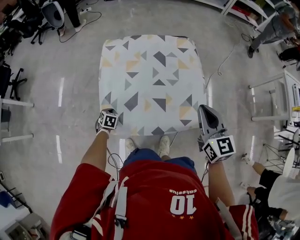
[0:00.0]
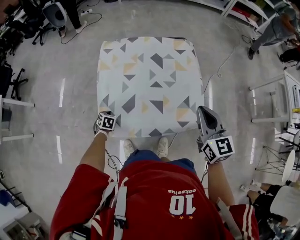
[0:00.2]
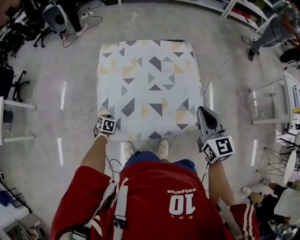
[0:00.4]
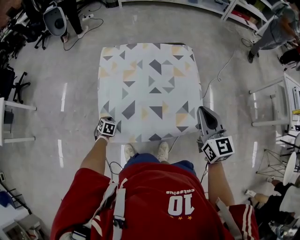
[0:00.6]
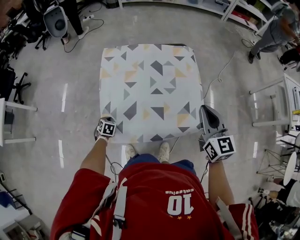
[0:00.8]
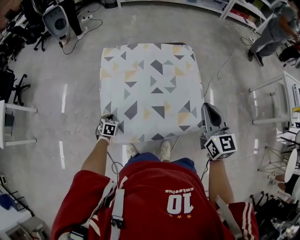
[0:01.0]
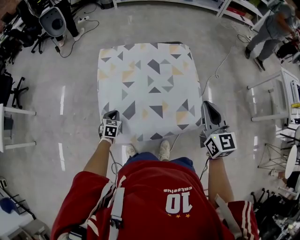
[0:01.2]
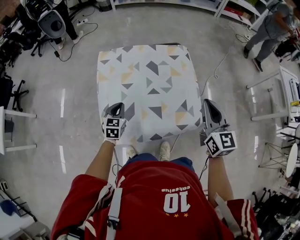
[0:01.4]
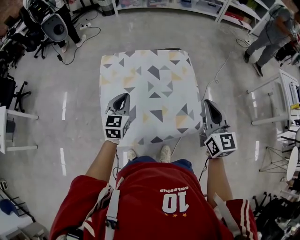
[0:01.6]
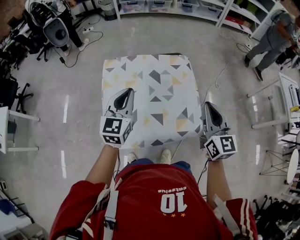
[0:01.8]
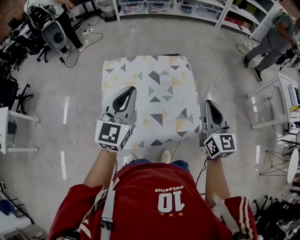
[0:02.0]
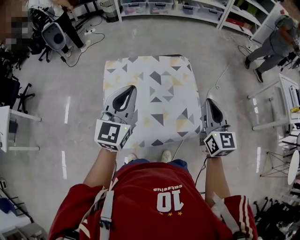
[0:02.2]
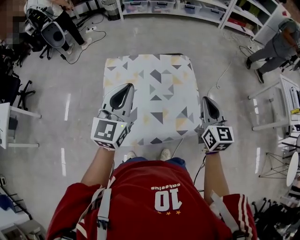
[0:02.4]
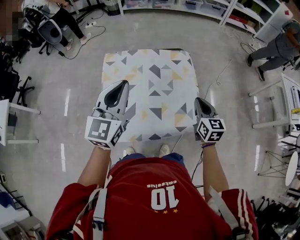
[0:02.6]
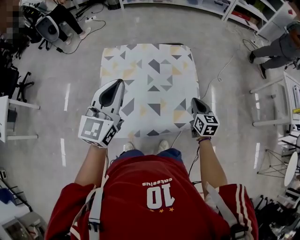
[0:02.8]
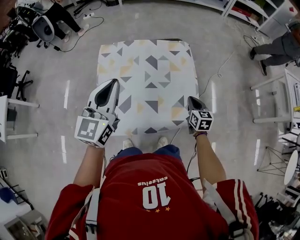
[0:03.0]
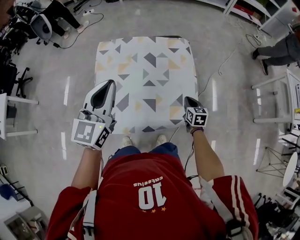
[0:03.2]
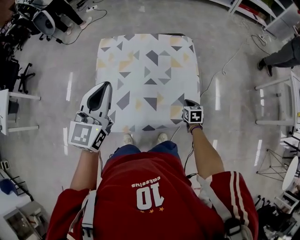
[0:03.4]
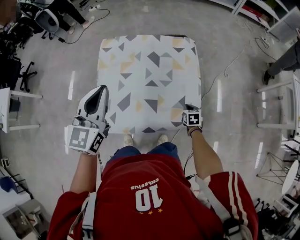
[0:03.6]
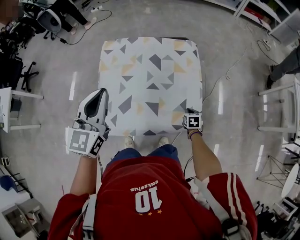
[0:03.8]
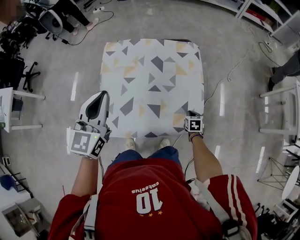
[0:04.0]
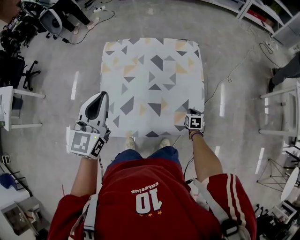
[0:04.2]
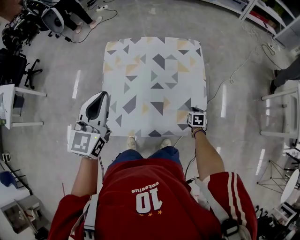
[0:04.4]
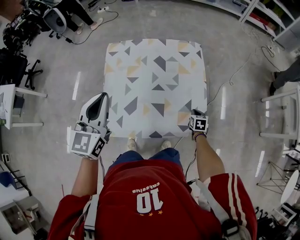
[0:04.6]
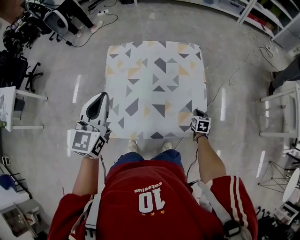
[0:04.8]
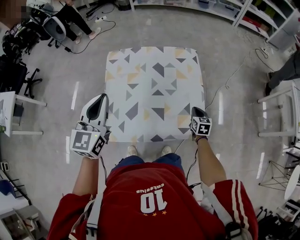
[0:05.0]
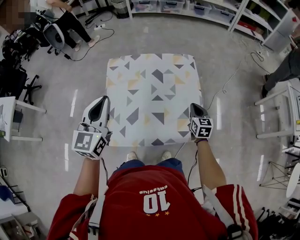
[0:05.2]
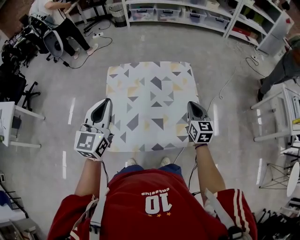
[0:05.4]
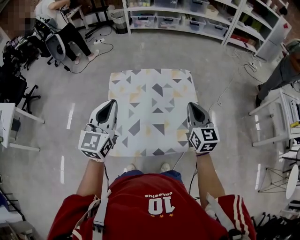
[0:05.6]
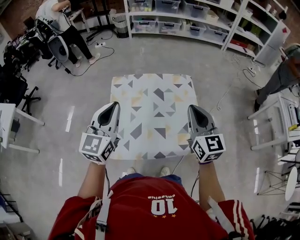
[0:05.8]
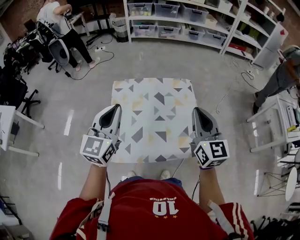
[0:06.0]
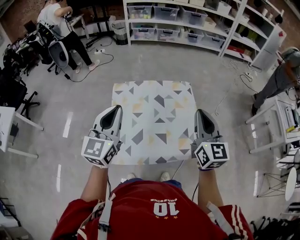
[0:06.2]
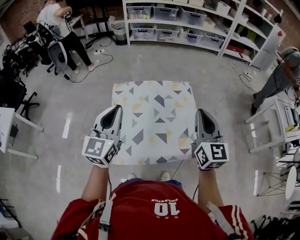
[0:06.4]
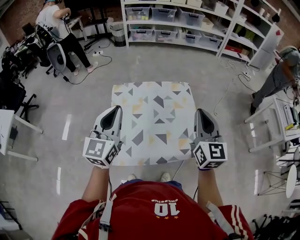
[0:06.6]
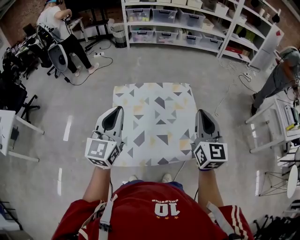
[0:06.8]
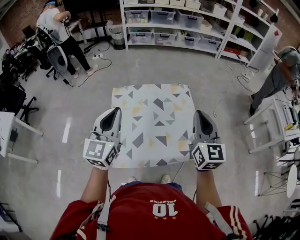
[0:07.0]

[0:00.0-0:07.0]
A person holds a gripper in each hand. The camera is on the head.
0.0 to 1.4 s: The left gripper is displaced upward and to the right by approximately 20 cm, and tilts its fingers approximately 30 degrees upward. Meanwhile the right gripper is displaced to the right by about 5 cm.
1.4 to 2.8 s: The left gripper is displaced upward by some 30 cm, and tilts its fingers some 30 degrees upward. Meanwhile the right gripper travels downward by some 15 cm.
2.8 to 4.2 s: The left gripper is displaced downward by roughly 5 cm. Meanwhile the right gripper travels downward by roughly 25 cm, and tips its fingers downward by about 30 degrees.
4.2 to 5.6 s: The left gripper goes about 5 cm upward; the right gripper moves upward, about 40 cm, and tips its fingers upward by some 50 degrees.
5.6 to 7.0 s: The left gripper travels upward by approximately 5 cm. Meanwhile the right gripper shifts approximately 15 cm upward and backward.

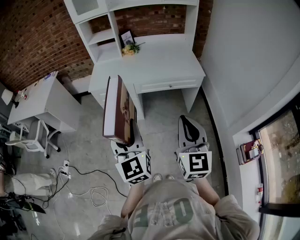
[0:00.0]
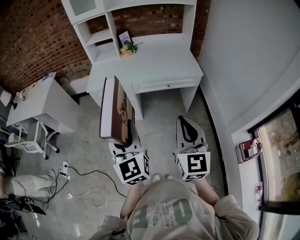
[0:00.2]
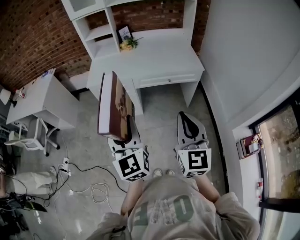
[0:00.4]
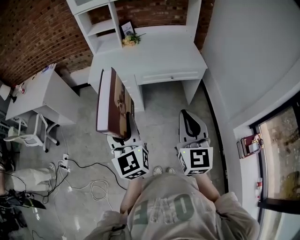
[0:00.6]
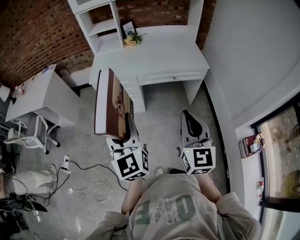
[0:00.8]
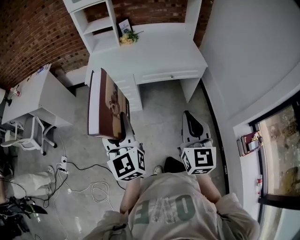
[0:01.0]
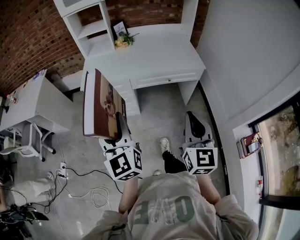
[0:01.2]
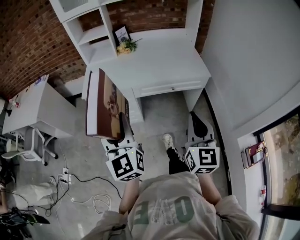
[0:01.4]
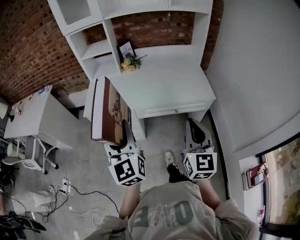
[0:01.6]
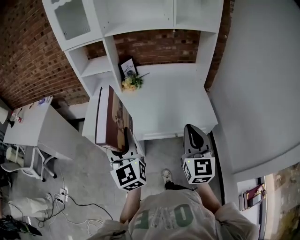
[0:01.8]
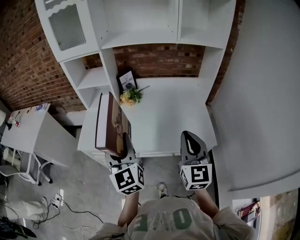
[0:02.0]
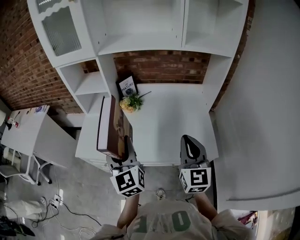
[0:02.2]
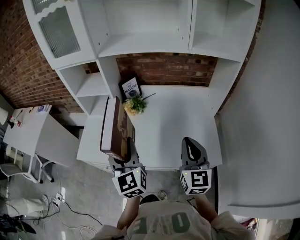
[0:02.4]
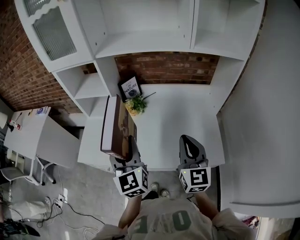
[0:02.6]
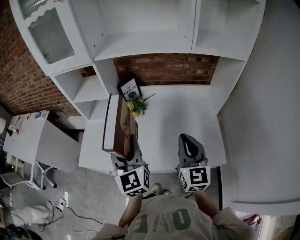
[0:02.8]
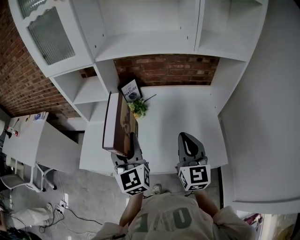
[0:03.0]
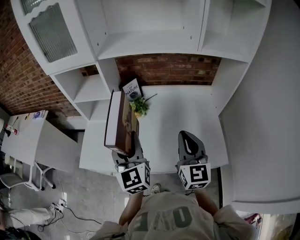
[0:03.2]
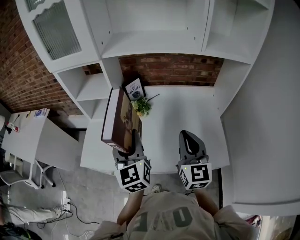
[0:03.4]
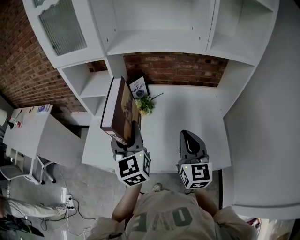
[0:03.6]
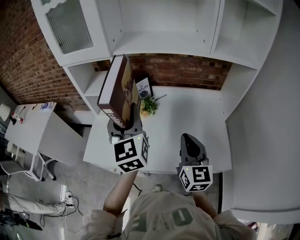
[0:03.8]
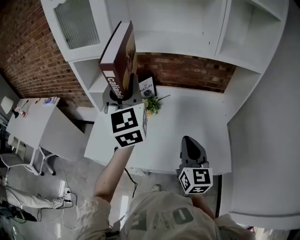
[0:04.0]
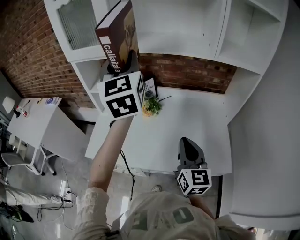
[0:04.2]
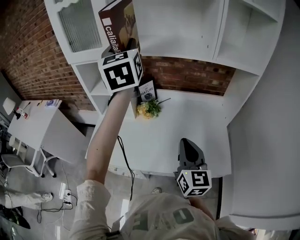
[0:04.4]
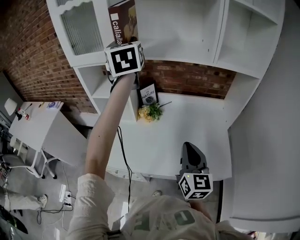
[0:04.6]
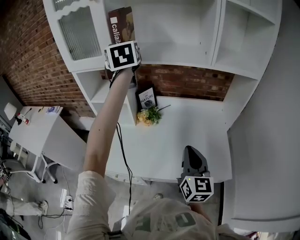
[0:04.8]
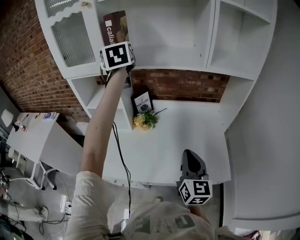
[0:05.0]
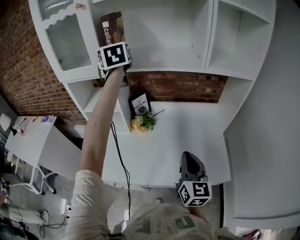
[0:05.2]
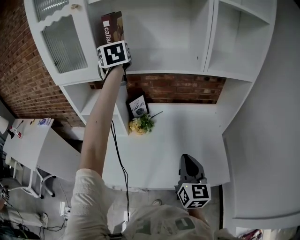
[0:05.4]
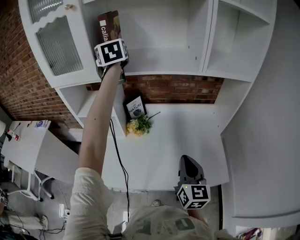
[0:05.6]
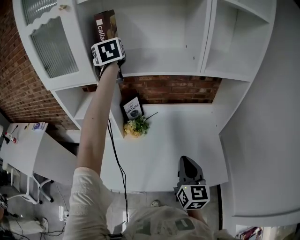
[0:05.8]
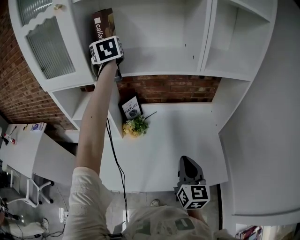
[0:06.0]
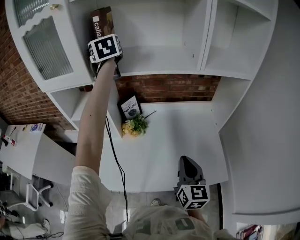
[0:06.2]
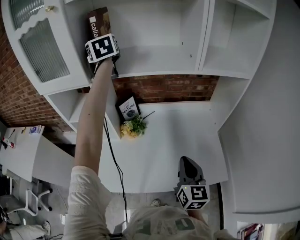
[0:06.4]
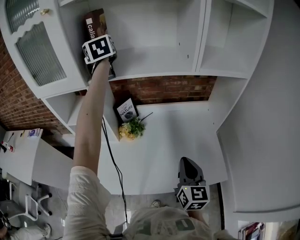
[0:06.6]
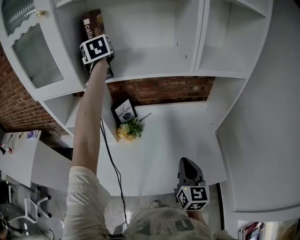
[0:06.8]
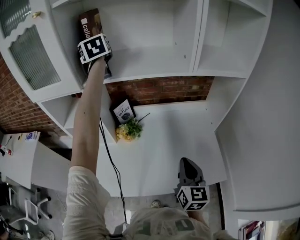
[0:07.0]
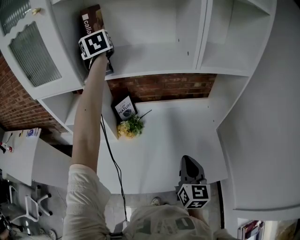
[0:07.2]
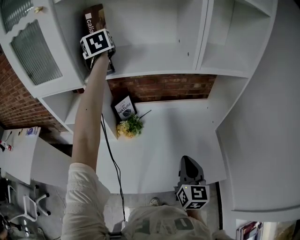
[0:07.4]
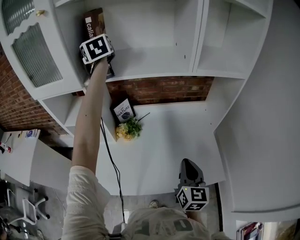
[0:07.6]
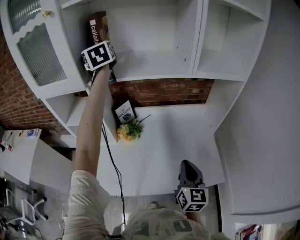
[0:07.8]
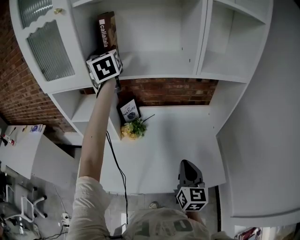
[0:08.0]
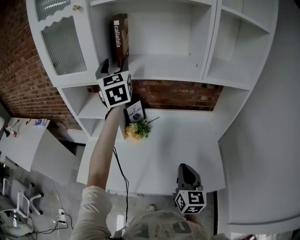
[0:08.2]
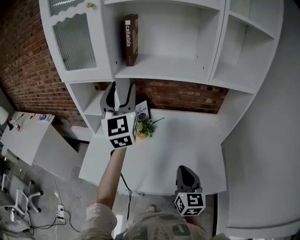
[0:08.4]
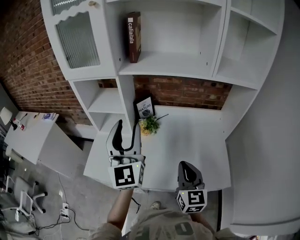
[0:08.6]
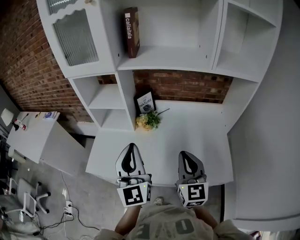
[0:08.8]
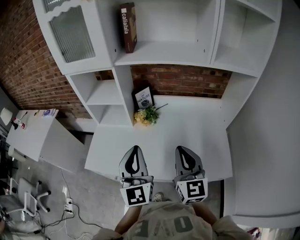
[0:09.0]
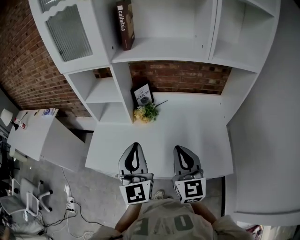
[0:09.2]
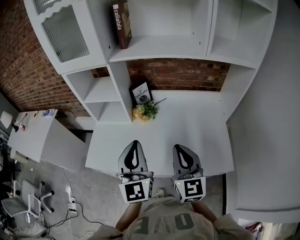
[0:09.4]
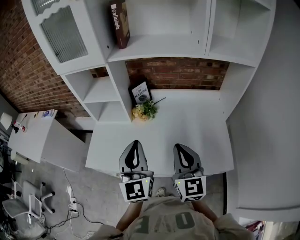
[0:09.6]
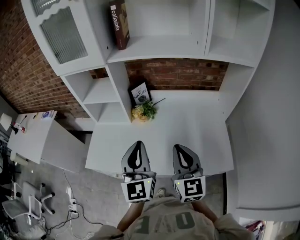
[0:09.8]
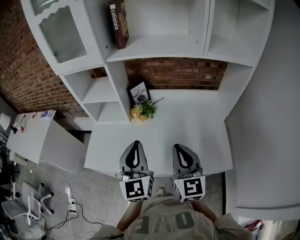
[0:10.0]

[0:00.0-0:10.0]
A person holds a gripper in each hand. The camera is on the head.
0.0 to 1.4 s: The right gripper goes about 15 cm forward and downward; the left gripper shifts roughly 15 cm forward.
1.4 to 2.8 s: The pair of grippers is taken forward, roughly 50 cm.
2.8 to 4.2 s: The right gripper is displaced to the left by roughly 5 cm. The left gripper goes about 25 cm upward and forward.
4.2 to 5.8 s: The right gripper changes place by roughly 5 cm. The left gripper moves forward, roughly 25 cm.
5.8 to 7.2 s: The left gripper travels forward by approximately 5 cm.
7.2 to 8.6 s: The left gripper shifts roughly 40 cm backward, and swivels roughly 20 degrees. Meanwhile the right gripper goes some 5 cm to the left.
8.6 to 10.0 s: The left gripper shifts approximately 10 cm downward and backward, and closes its fingers.

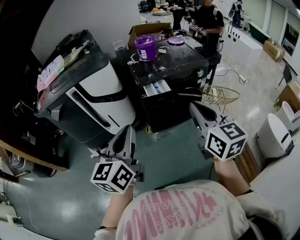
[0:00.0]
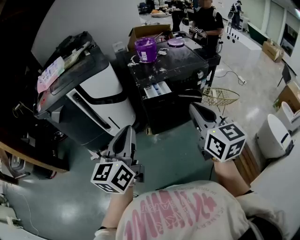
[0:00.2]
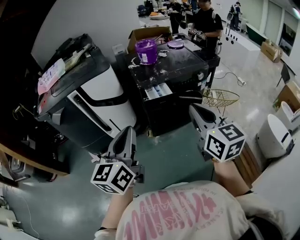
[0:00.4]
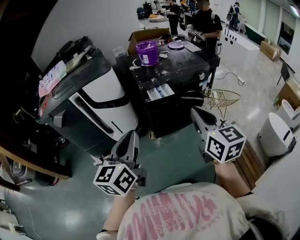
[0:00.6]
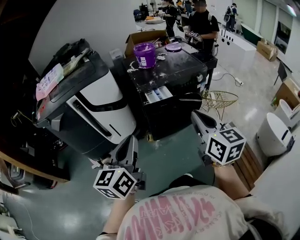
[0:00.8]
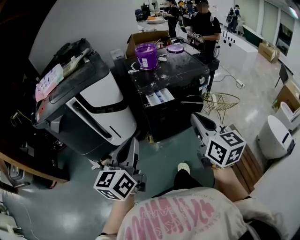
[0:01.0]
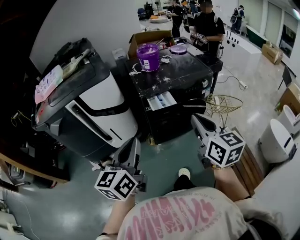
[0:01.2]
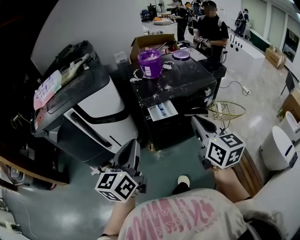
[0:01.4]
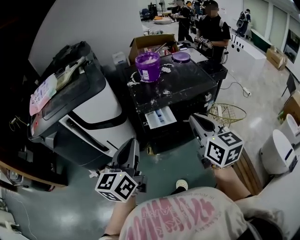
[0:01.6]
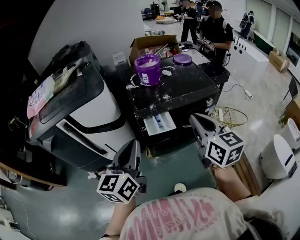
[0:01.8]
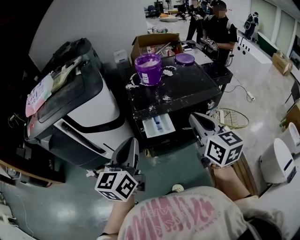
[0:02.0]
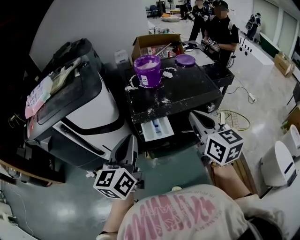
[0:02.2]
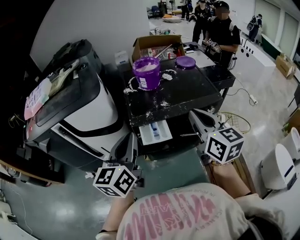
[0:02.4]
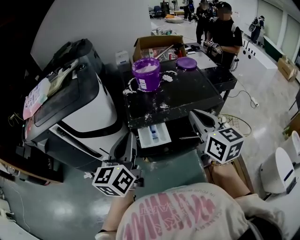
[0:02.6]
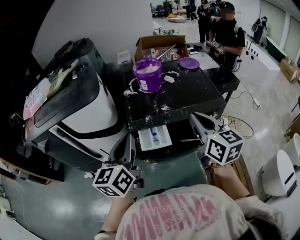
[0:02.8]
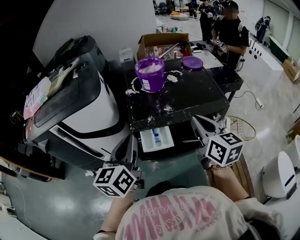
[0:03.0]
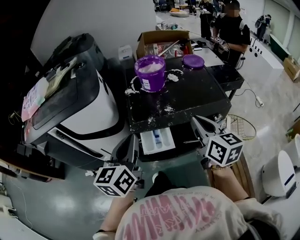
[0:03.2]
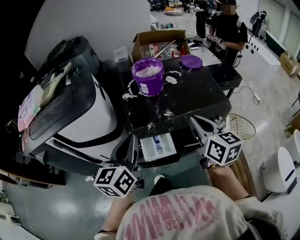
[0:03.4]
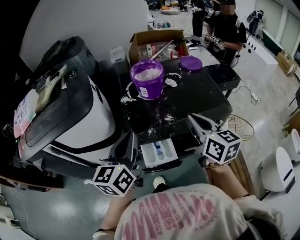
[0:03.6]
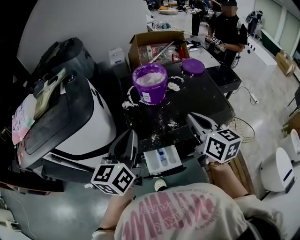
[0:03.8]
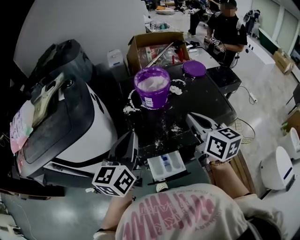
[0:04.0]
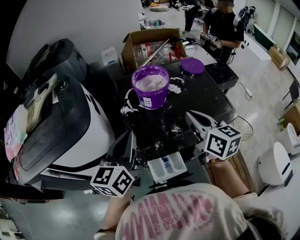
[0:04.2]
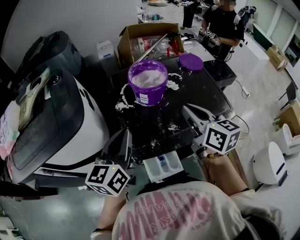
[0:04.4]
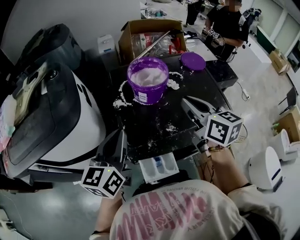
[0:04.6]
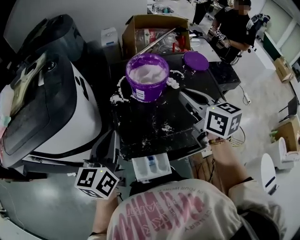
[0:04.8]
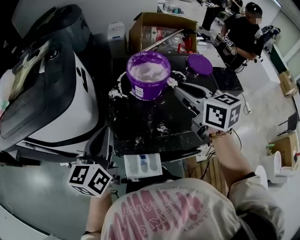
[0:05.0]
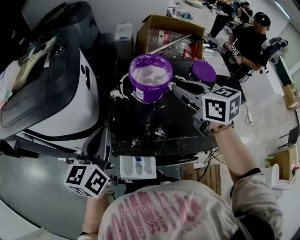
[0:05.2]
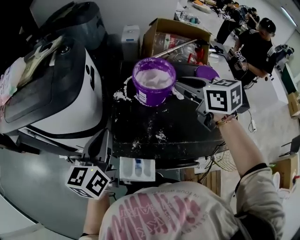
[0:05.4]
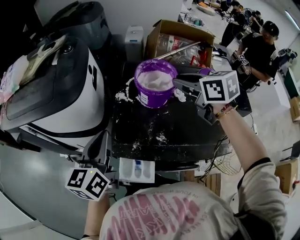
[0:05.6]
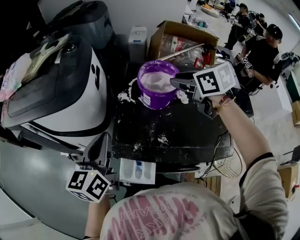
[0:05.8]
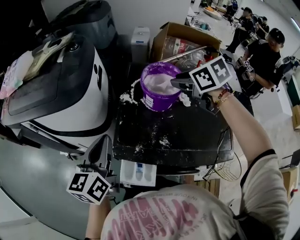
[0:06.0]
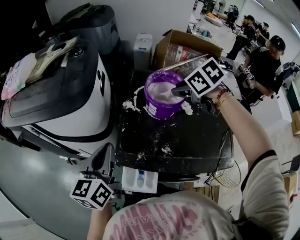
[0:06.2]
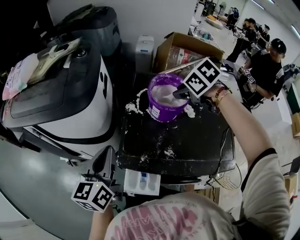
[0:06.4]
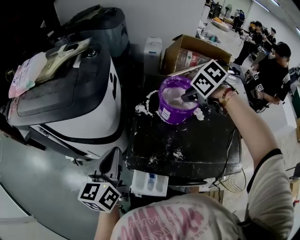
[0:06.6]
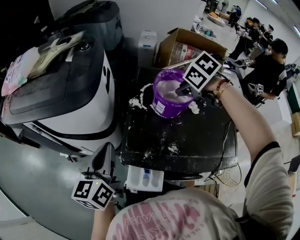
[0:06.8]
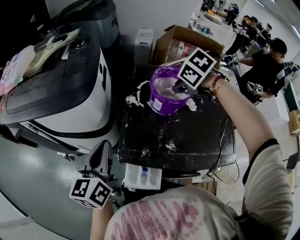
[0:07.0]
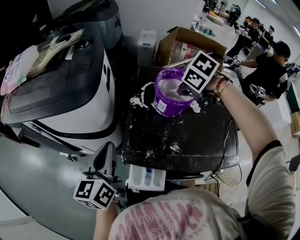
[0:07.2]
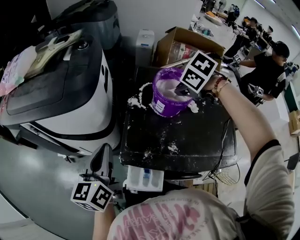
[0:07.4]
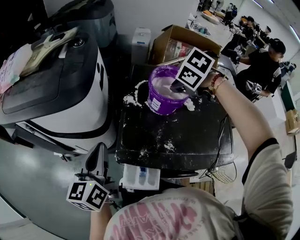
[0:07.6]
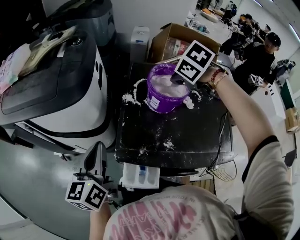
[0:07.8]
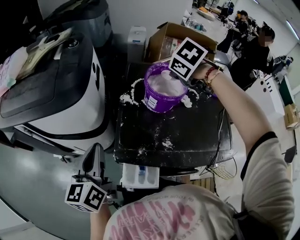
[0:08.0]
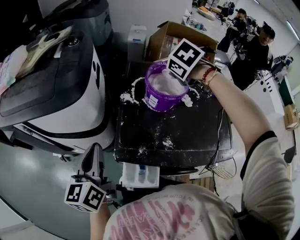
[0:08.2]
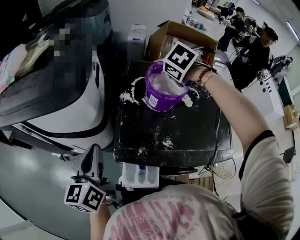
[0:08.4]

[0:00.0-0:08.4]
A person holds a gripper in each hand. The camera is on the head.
0.0 to 1.4 s: The two grippers go some 10 cm forward.
1.4 to 2.8 s: The grippers both shift forward and to the right by some 20 cm.
2.8 to 4.2 s: The grippers both shift forward by approximately 20 cm.
4.2 to 5.6 s: The right gripper shifts by some 15 cm, swivels some 40 degrees, and opens up, while the left gripper rotates some 30 degrees.
5.6 to 7.0 s: The right gripper heads downward and forward, covering roughly 10 cm, and tips its fingers downward by roughly 40 degrees. The left gripper shifts by approximately 5 cm.
7.0 to 8.4 s: The right gripper closes its fingers.
